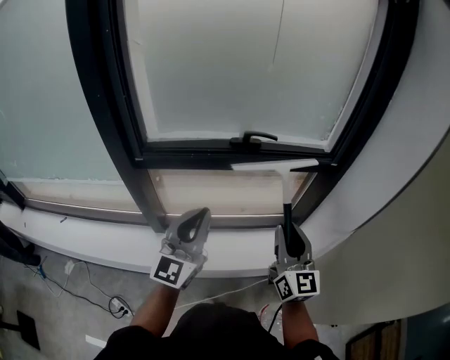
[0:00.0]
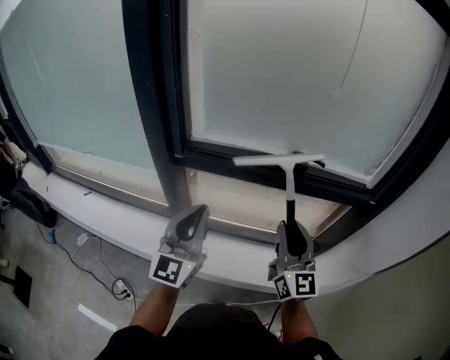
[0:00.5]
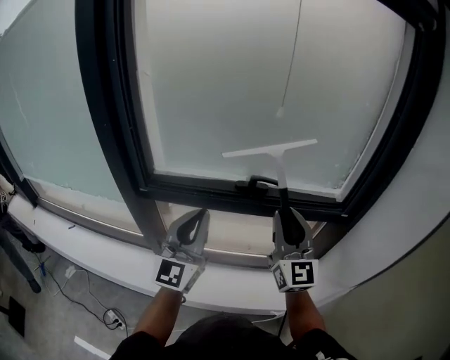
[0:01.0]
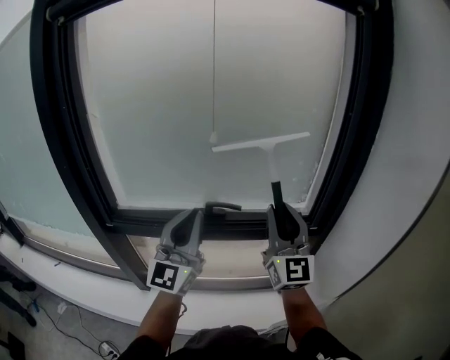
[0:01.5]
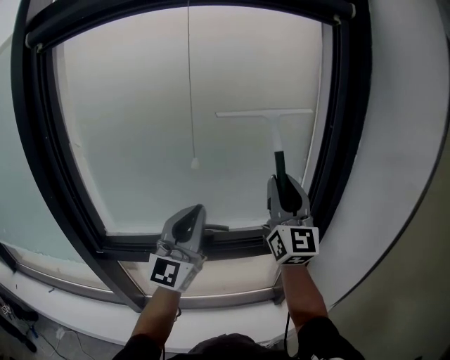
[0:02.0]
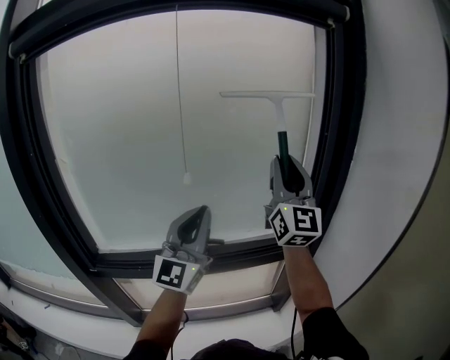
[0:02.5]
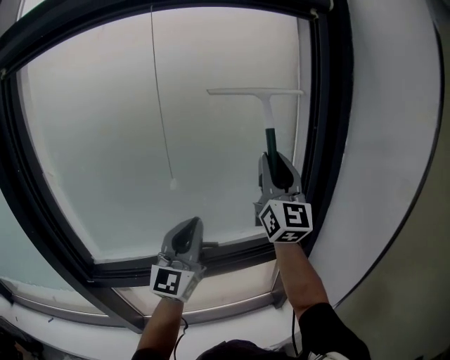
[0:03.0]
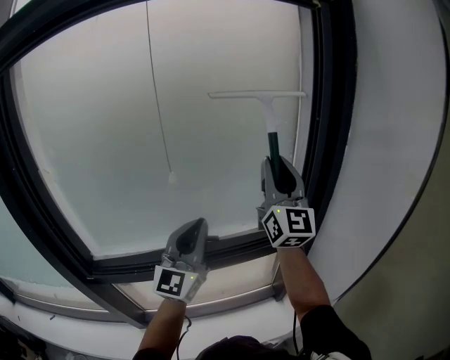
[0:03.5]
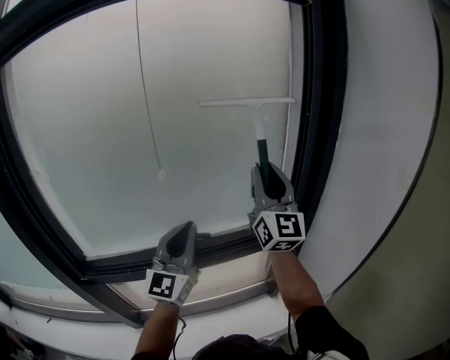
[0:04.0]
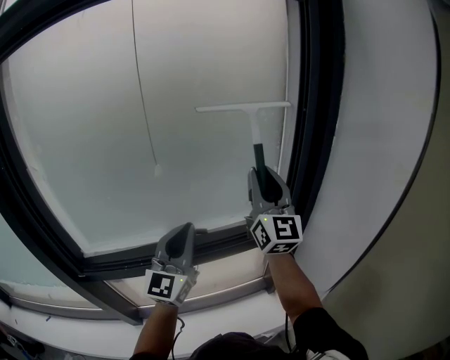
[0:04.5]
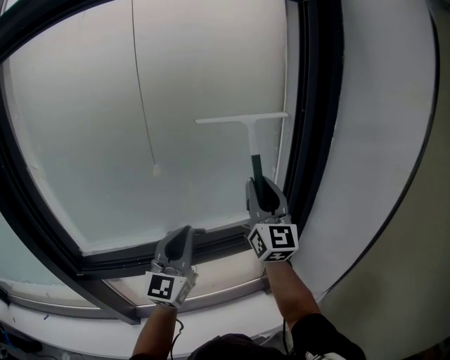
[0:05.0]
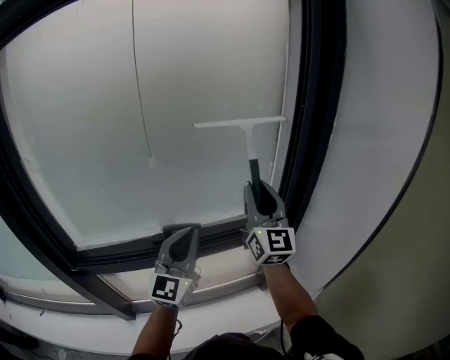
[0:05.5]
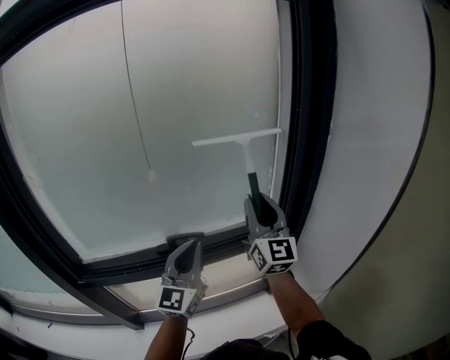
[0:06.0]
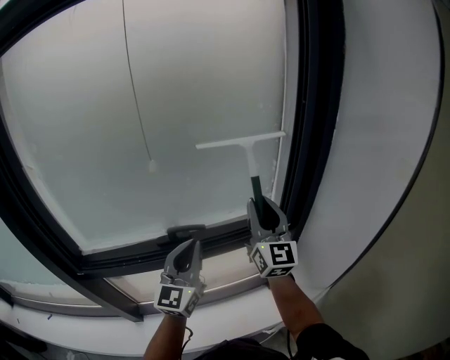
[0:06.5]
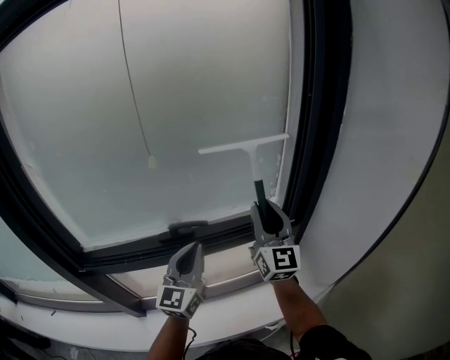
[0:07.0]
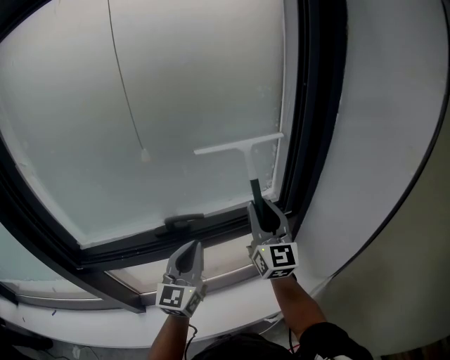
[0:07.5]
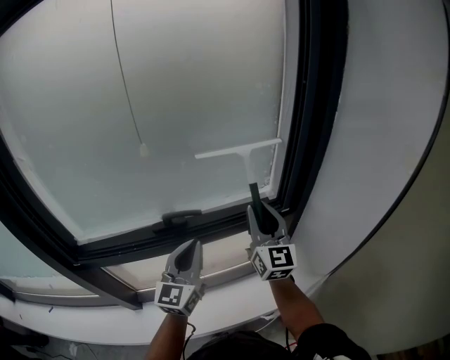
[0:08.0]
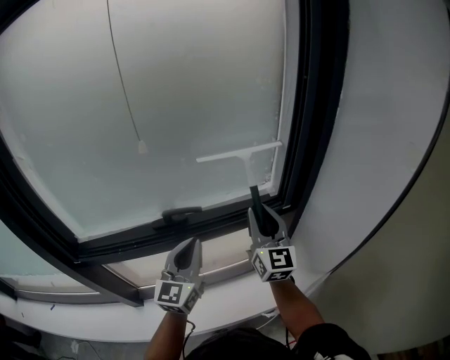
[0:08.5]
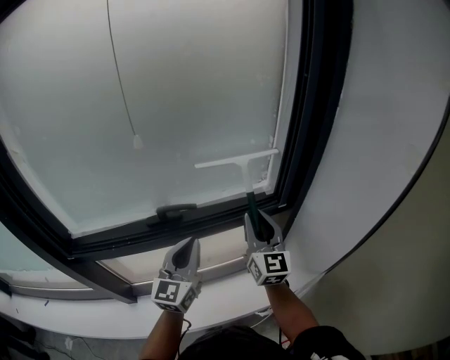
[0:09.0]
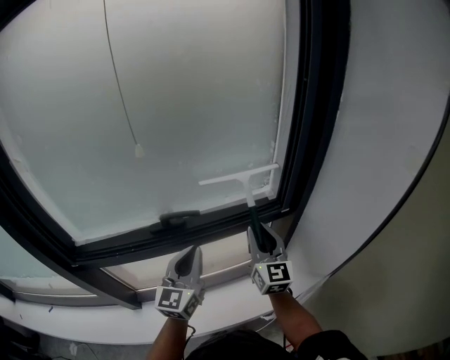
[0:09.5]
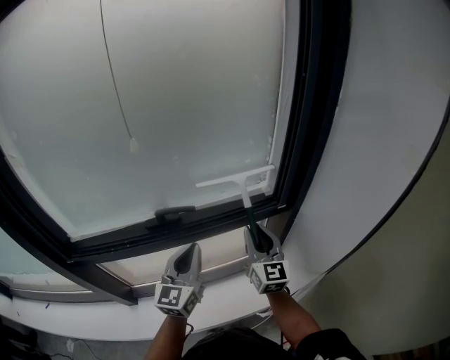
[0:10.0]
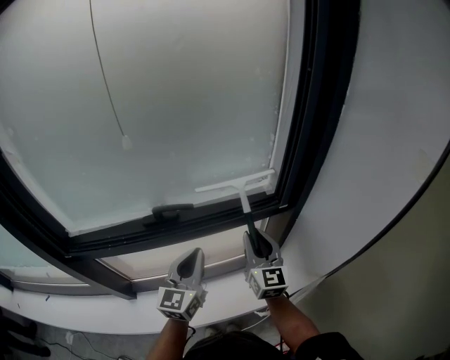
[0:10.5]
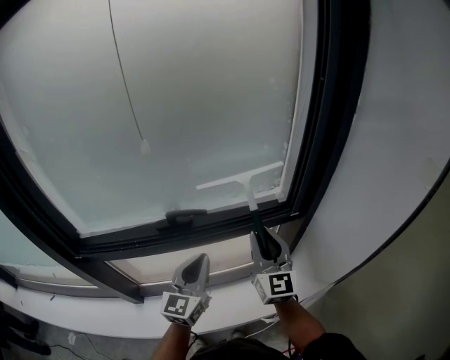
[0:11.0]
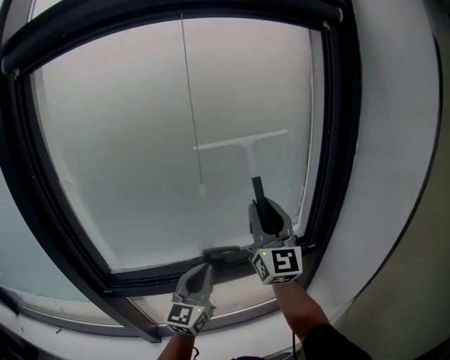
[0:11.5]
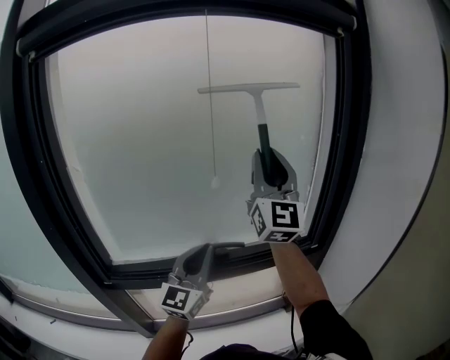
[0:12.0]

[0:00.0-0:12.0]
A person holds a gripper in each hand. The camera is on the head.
0:00.0 to 0:02.0: The right gripper shifts some 35 cm upward, forward and to the right, and turns by some 30 degrees. The left gripper moves forward, upward and to the right, about 30 cm.
0:02.0 to 0:04.0: The right gripper moves forward, some 5 cm; the left gripper travels downward and forward by approximately 10 cm.
0:04.0 to 0:06.0: The right gripper heads downward, covering about 10 cm, while the left gripper travels downward by about 5 cm.
0:06.0 to 0:08.0: Both grippers travel together downward, about 10 cm.
0:08.0 to 0:10.0: The right gripper goes roughly 10 cm downward.
0:10.0 to 0:12.0: The right gripper travels upward by approximately 35 cm, and angles its fingers upward, by about 40 degrees, while the left gripper travels upward and to the left by approximately 15 cm.

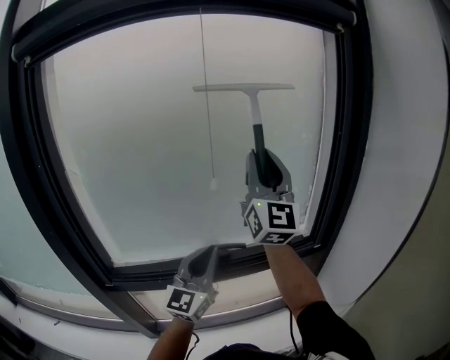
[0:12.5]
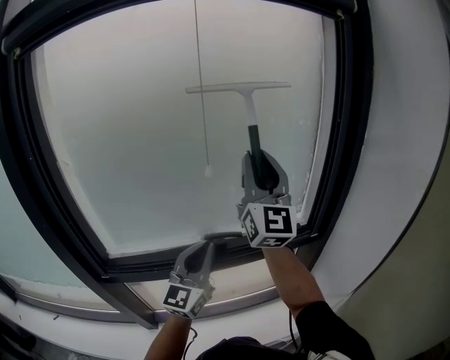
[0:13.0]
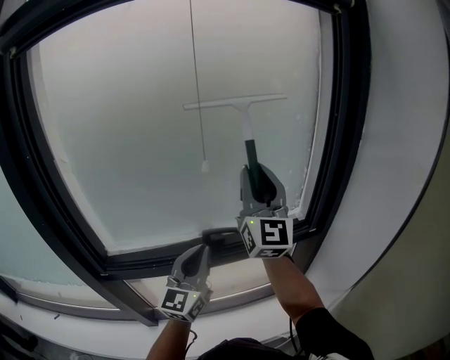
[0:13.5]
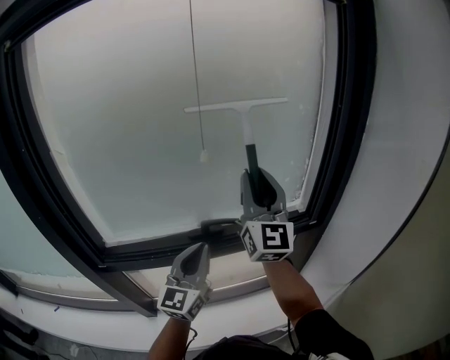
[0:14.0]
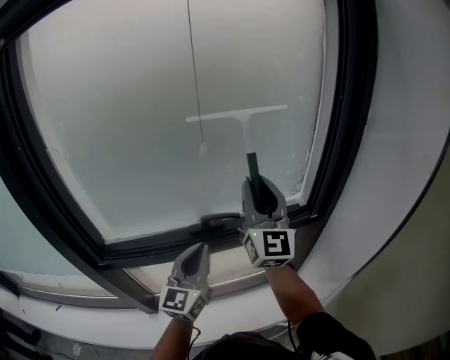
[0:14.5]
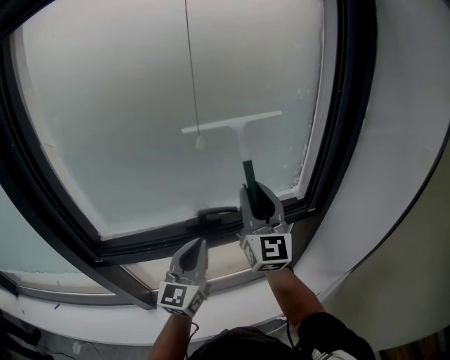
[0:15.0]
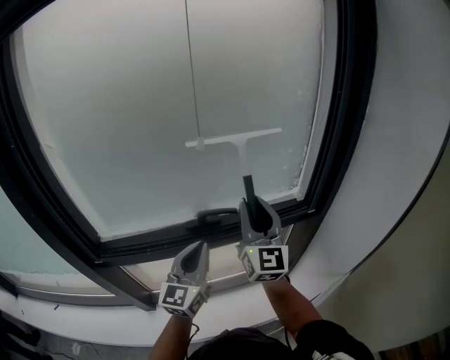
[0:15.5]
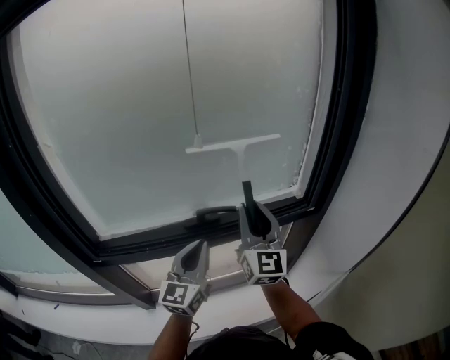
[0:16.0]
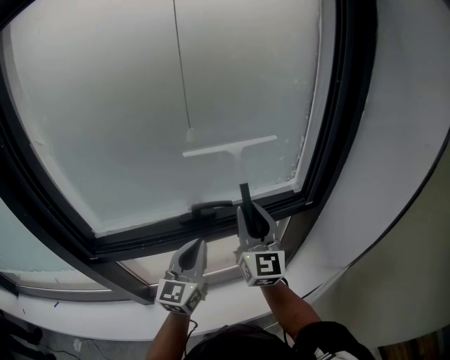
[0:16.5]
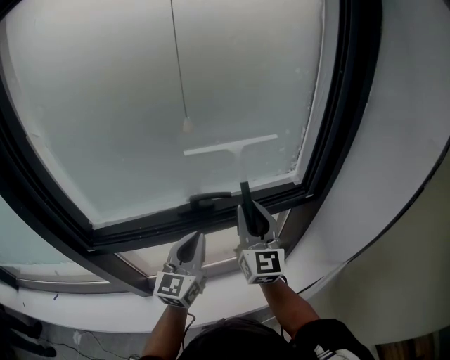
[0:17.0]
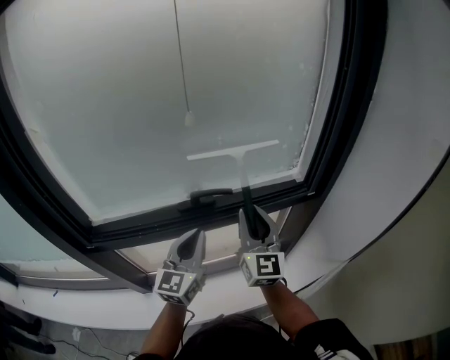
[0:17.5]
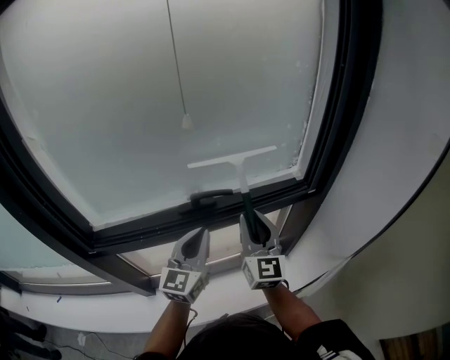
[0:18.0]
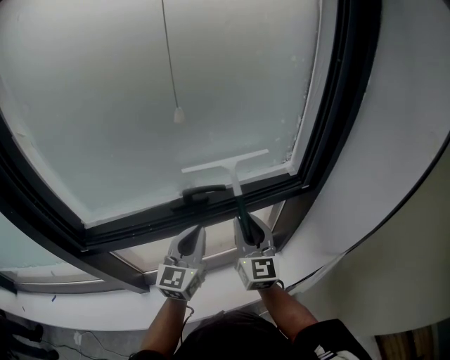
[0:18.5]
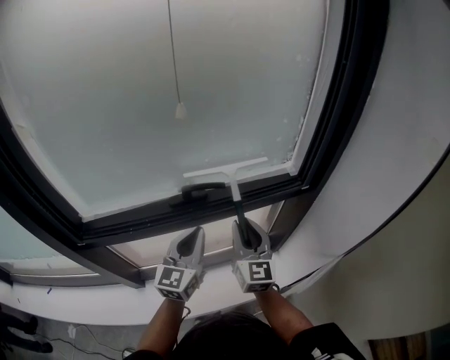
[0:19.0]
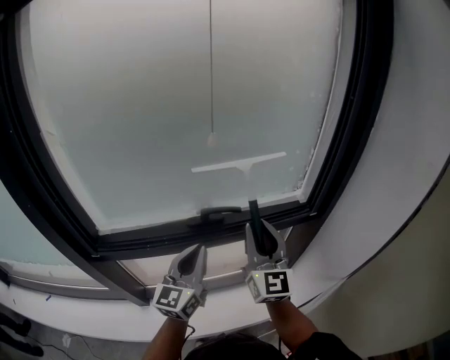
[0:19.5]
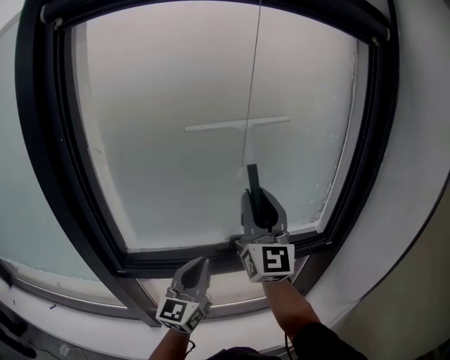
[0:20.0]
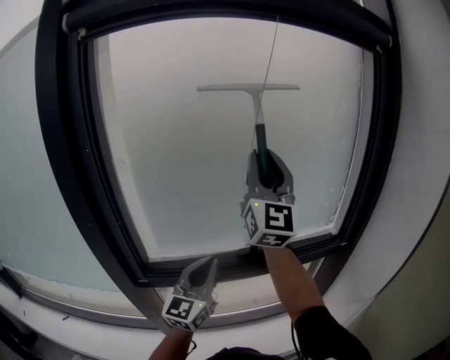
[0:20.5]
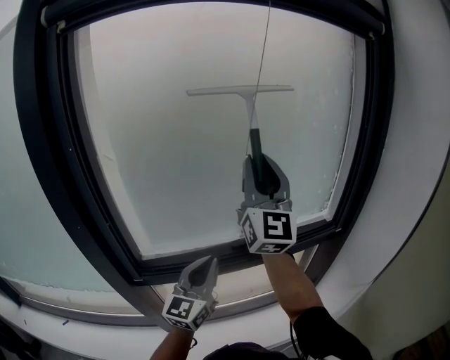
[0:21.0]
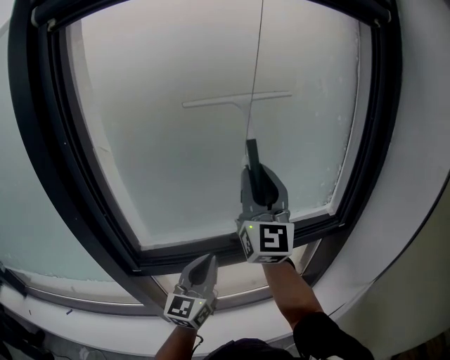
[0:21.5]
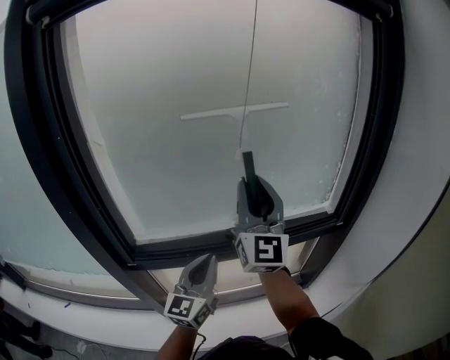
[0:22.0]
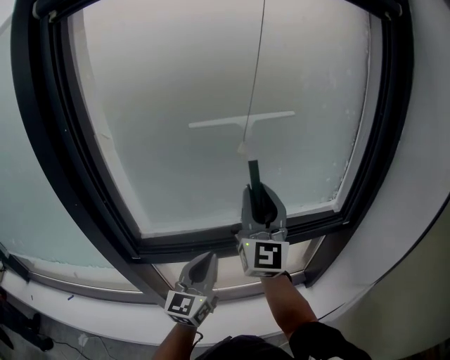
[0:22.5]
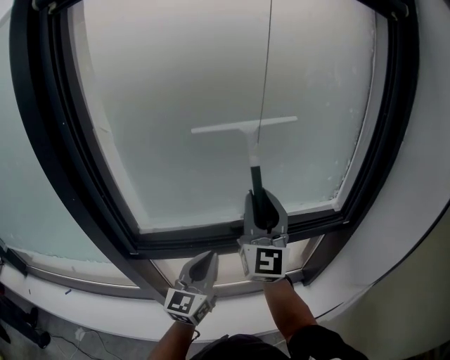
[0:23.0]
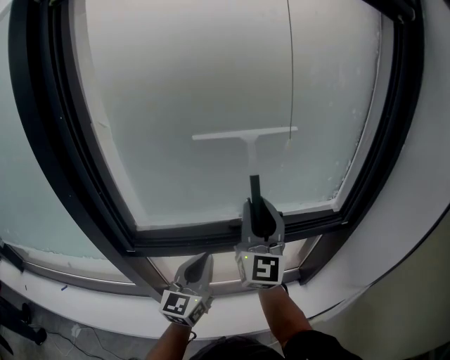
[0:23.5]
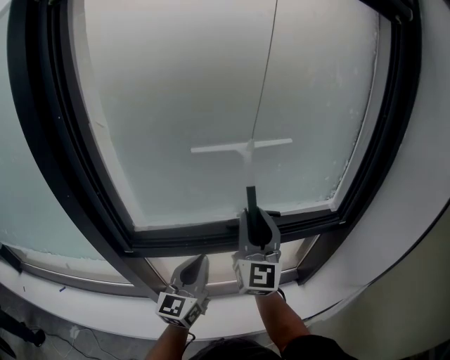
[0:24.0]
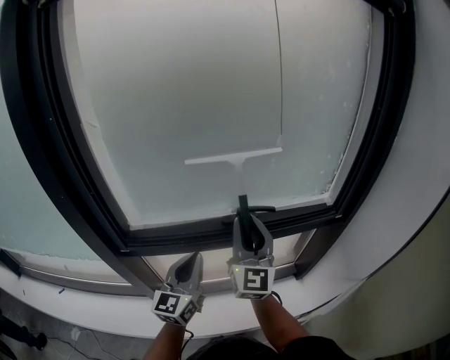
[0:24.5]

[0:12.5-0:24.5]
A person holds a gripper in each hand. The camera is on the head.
0:12.5 to 0:14.5: The right gripper moves downward, approximately 15 cm, while the left gripper travels downward by approximately 10 cm.
0:14.5 to 0:16.5: The right gripper shifts roughly 10 cm downward.
0:16.5 to 0:18.5: The right gripper goes about 10 cm downward.
0:18.5 to 0:20.5: The left gripper travels to the left and upward by about 15 cm. The right gripper is displaced upward by roughly 35 cm, and tips its fingers upward by roughly 30 degrees.
0:20.5 to 0:22.5: The right gripper heads downward, covering roughly 15 cm, while the left gripper heads downward, covering approximately 5 cm.
0:22.5 to 0:24.5: The right gripper moves downward, about 10 cm.

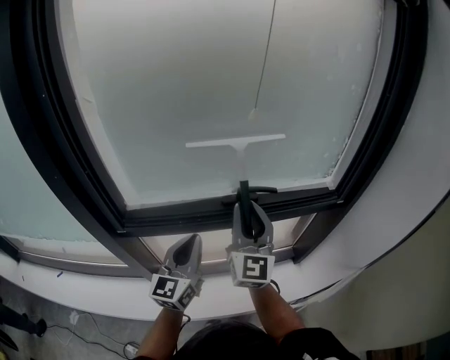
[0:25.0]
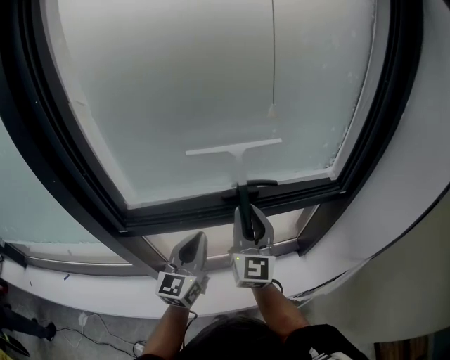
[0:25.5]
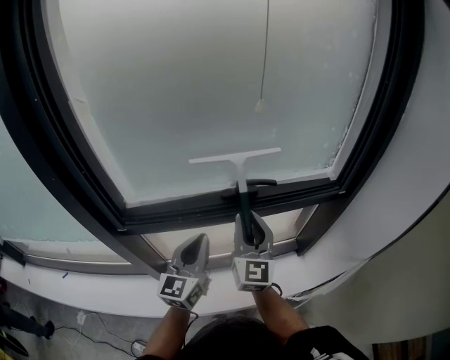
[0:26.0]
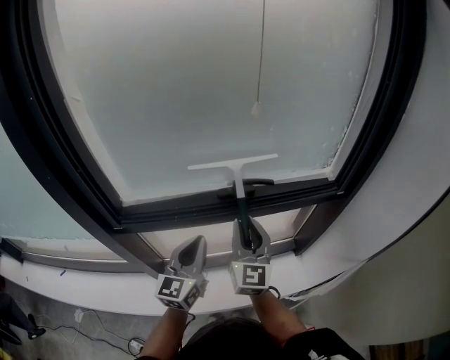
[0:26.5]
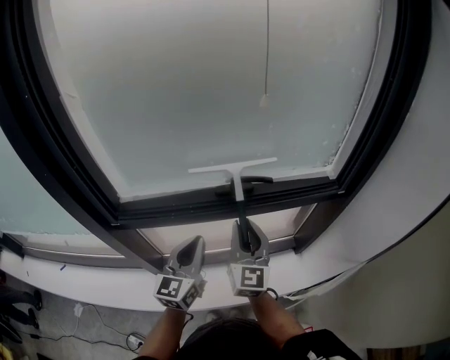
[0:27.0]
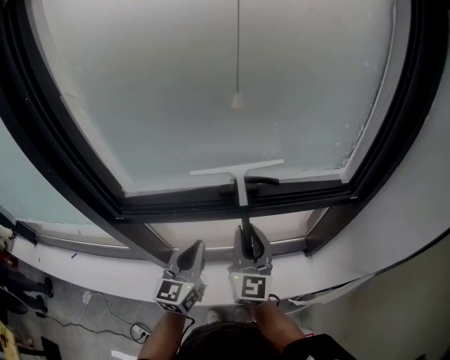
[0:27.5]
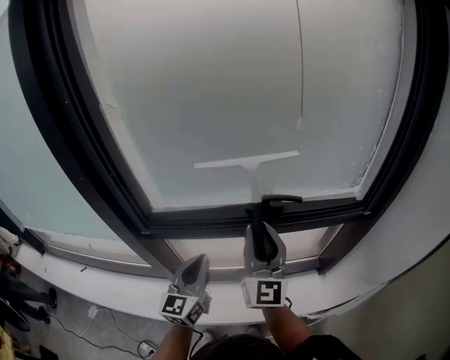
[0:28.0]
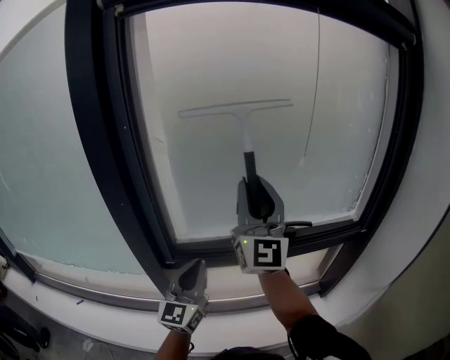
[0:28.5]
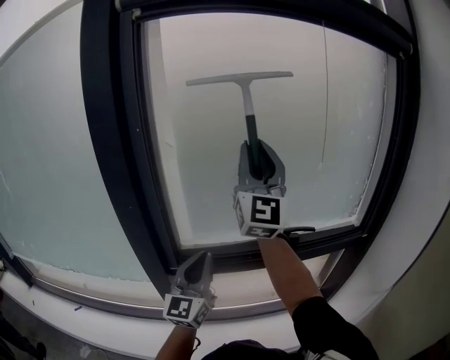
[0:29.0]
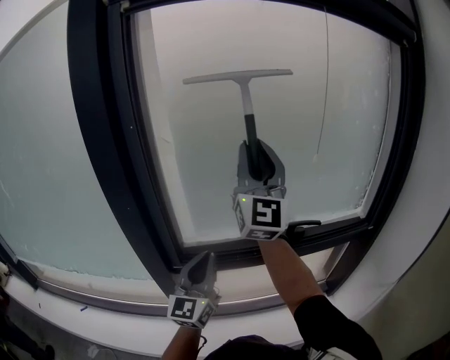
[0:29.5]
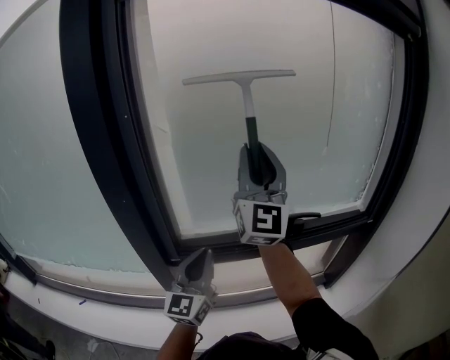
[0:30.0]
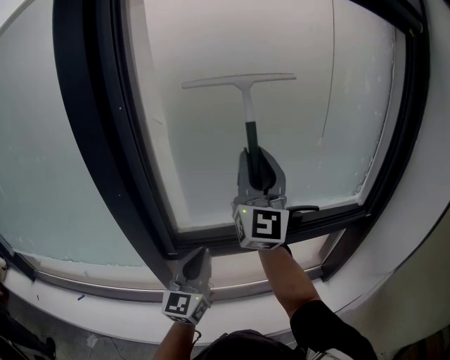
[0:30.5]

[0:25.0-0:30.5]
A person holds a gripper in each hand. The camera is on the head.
0:25.0 to 0:27.0: The right gripper moves downward, about 10 cm.
0:27.0 to 0:28.5: The right gripper moves upward and to the left, approximately 30 cm, and tips its fingers upward by about 30 degrees. The left gripper moves to the left and upward, some 20 cm, and turns by approximately 20 degrees.
0:28.5 to 0:30.5: The right gripper moves approximately 10 cm upward and comes back.
